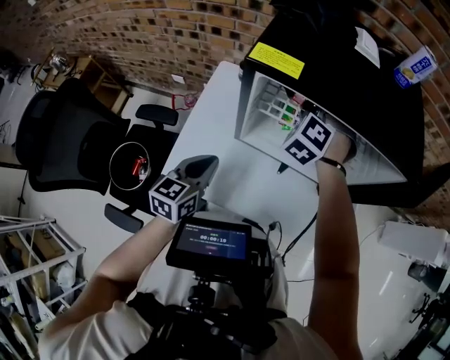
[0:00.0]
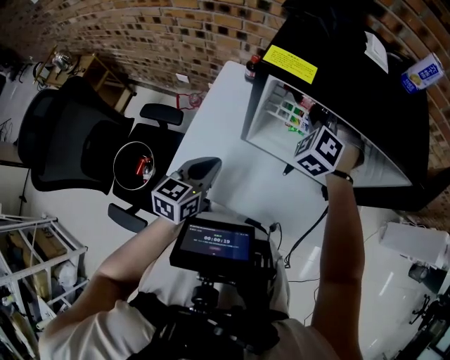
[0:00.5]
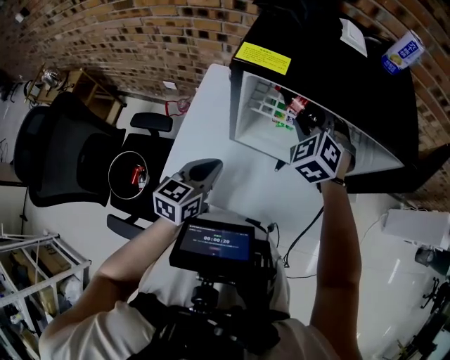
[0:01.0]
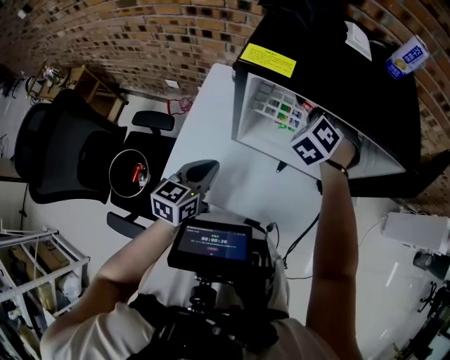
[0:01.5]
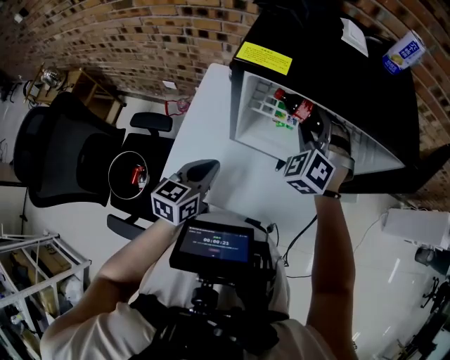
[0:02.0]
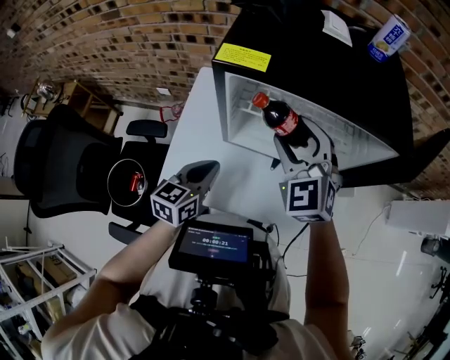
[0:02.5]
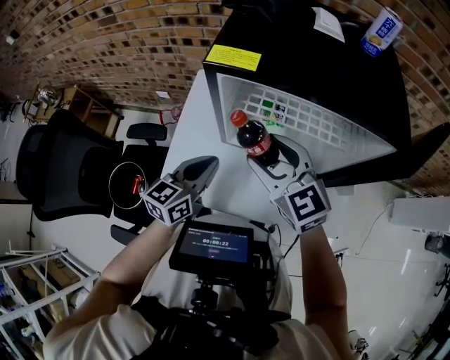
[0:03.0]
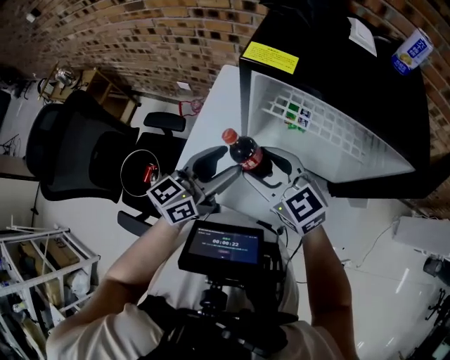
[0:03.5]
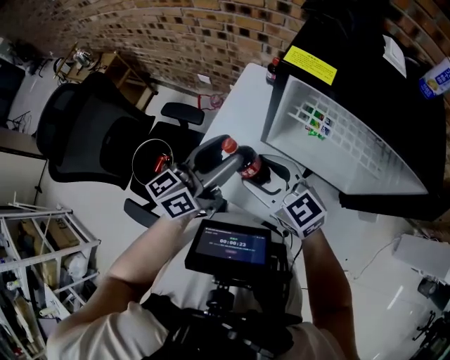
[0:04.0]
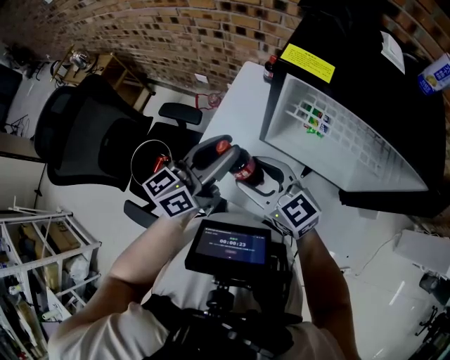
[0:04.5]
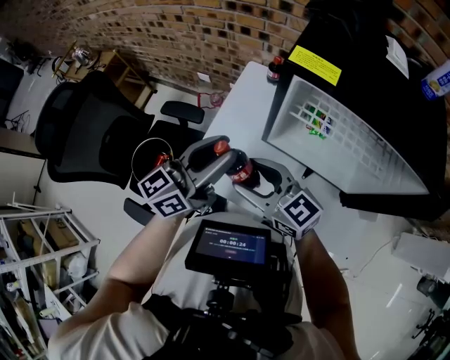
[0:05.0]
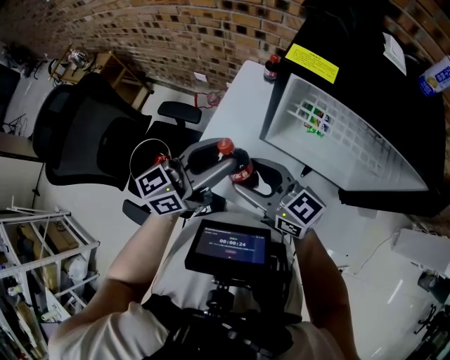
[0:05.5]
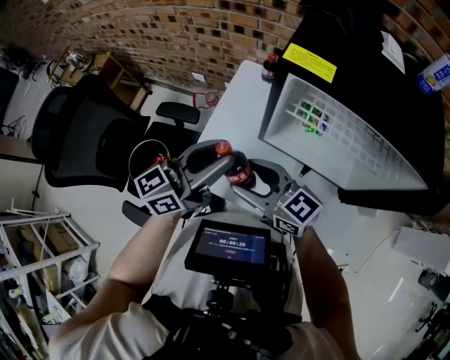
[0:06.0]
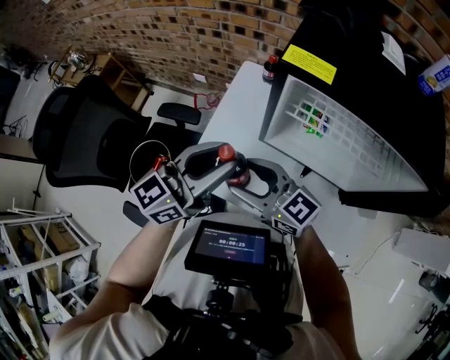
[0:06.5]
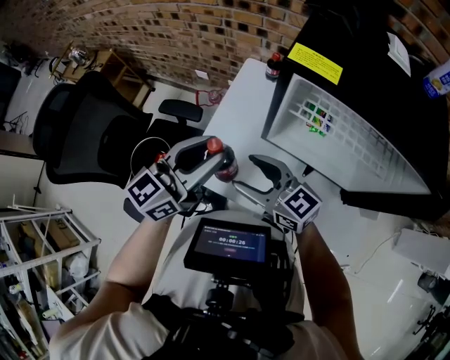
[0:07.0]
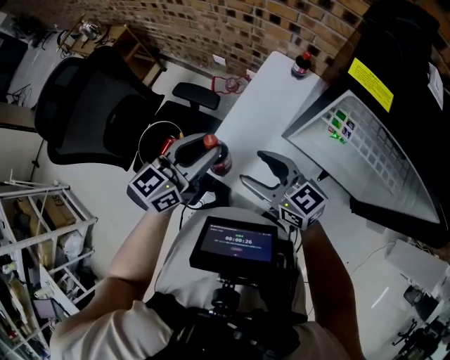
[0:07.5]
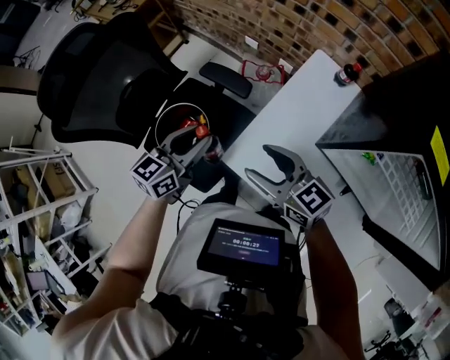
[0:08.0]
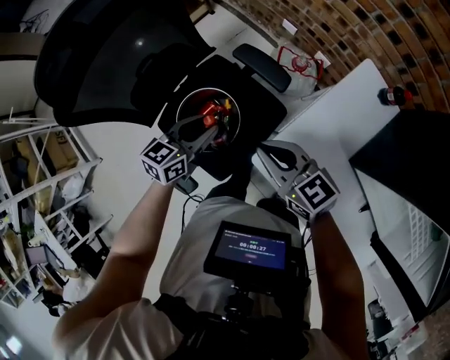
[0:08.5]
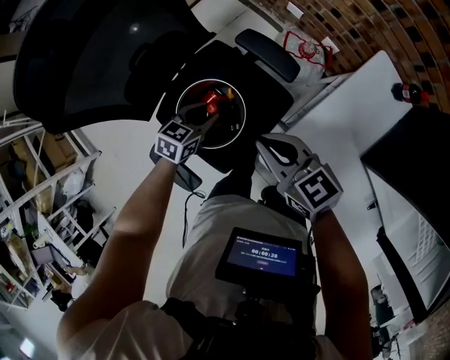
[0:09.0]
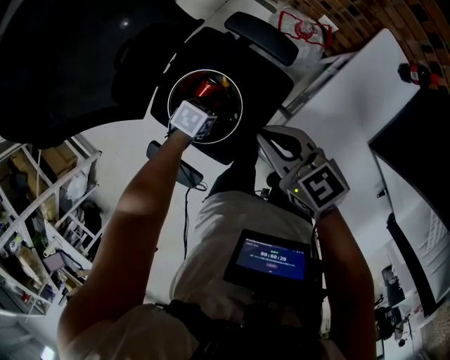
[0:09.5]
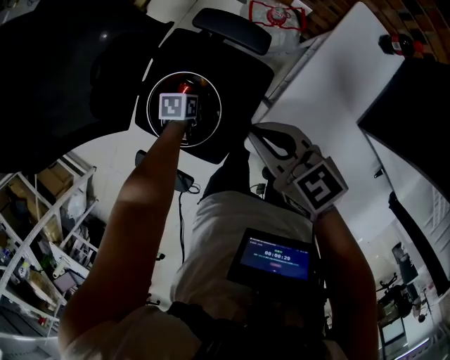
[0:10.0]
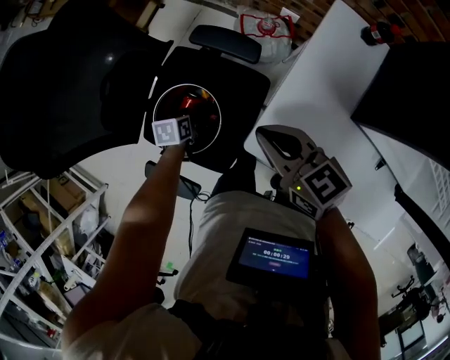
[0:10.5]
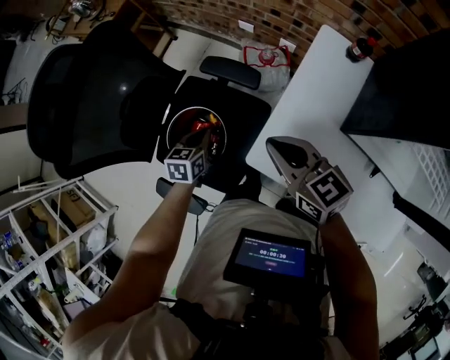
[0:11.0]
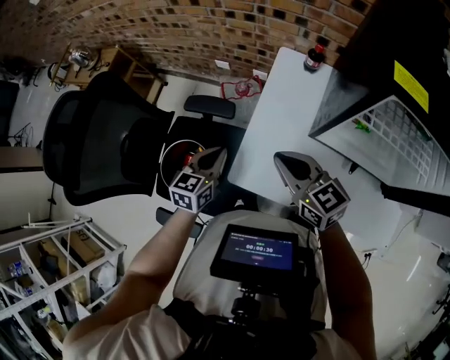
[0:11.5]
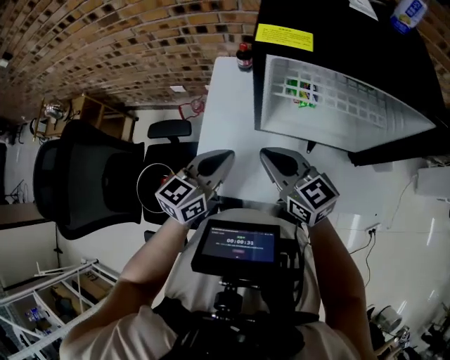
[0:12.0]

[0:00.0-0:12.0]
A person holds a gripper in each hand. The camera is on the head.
0:00.0 to 0:02.0: The right gripper moves forward and backward over some 5 cm, changing direction 2 times.
0:02.0 to 0:04.0: The right gripper shifts by some 25 cm, and swivels some 80 degrees, while the left gripper travels upward by some 10 cm, swivels about 30 degrees, and opens its fingers.
0:04.0 to 0:06.0: The left gripper closes up.
0:06.0 to 0:08.0: The left gripper travels to the left and downward by roughly 30 cm, and swivels some 30 degrees, while the right gripper moves to the left, downward and forward, roughly 15 cm.
0:08.0 to 0:10.0: The left gripper moves downward, about 35 cm, and tips its fingers downward by about 50 degrees, while the right gripper shifts by some 15 cm, and closes.
0:10.0 to 0:12.0: The left gripper is displaced upward by approximately 40 cm, tilts its fingers about 50 degrees upward, and closes. Meanwhile the right gripper shifts by some 35 cm, and rotates some 40 degrees.

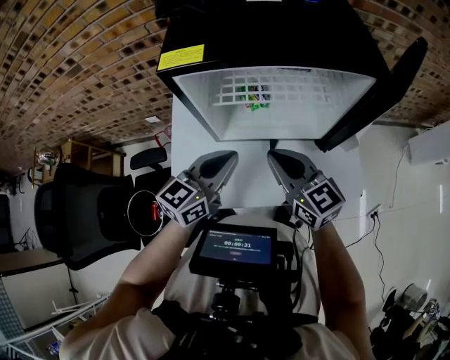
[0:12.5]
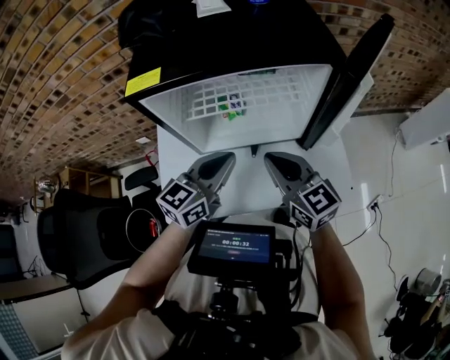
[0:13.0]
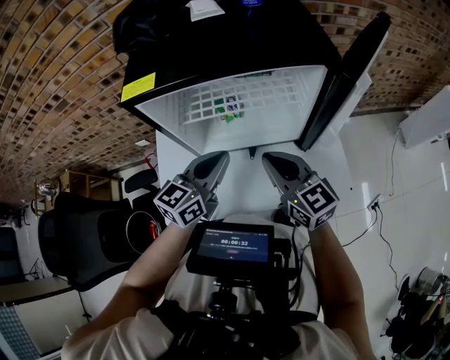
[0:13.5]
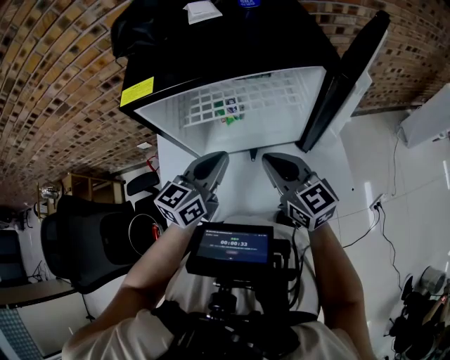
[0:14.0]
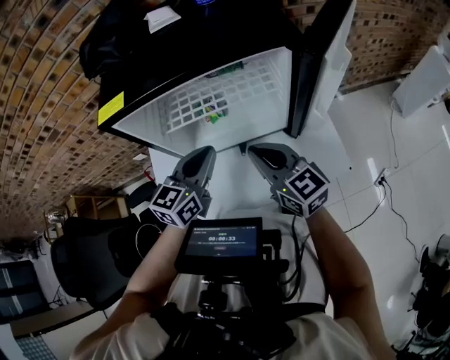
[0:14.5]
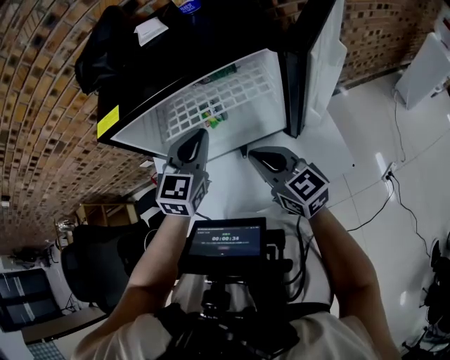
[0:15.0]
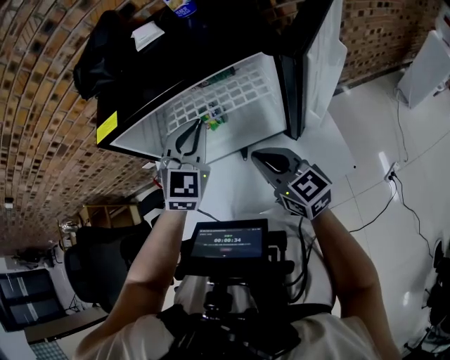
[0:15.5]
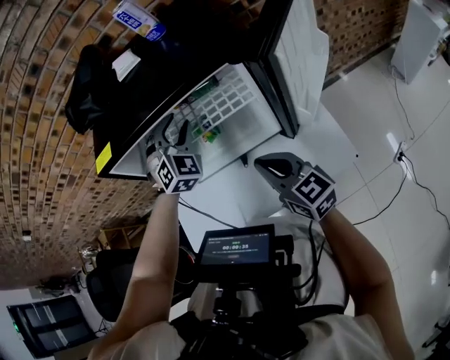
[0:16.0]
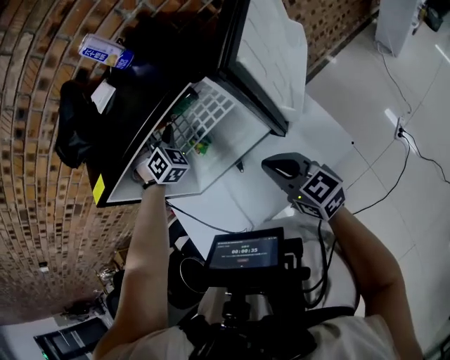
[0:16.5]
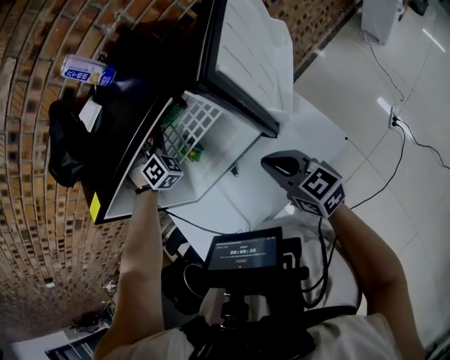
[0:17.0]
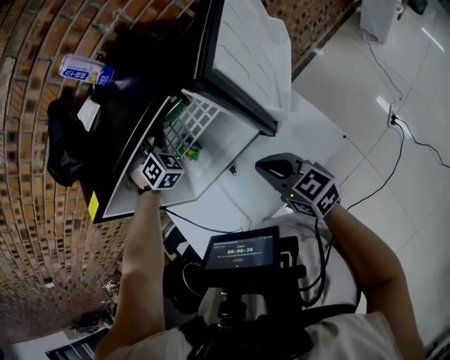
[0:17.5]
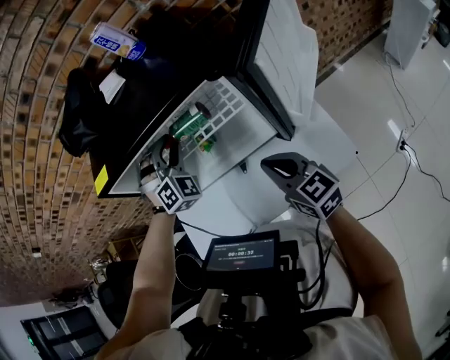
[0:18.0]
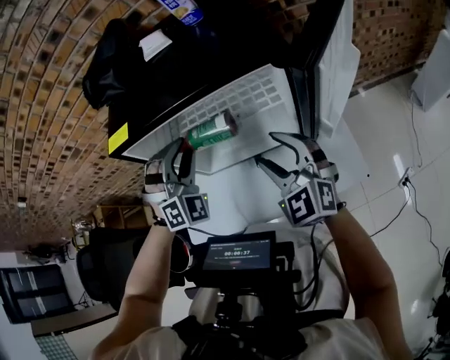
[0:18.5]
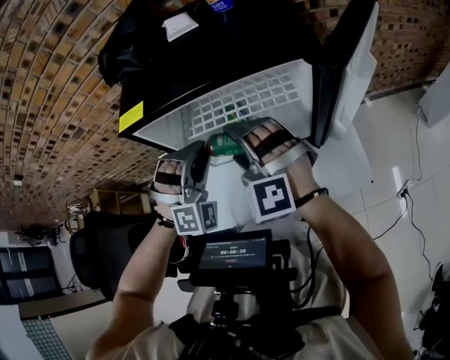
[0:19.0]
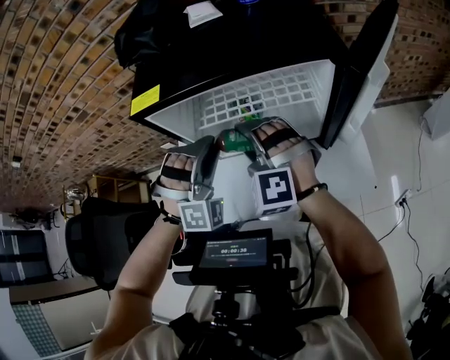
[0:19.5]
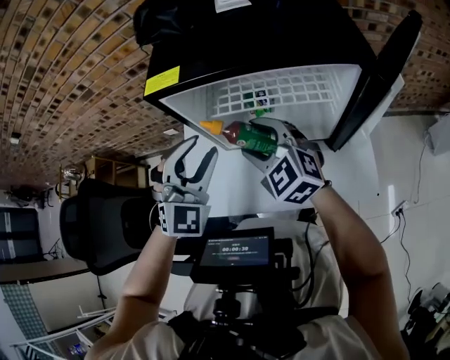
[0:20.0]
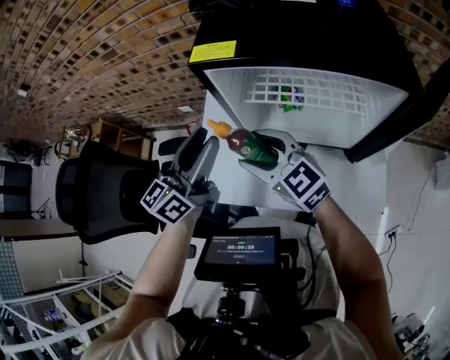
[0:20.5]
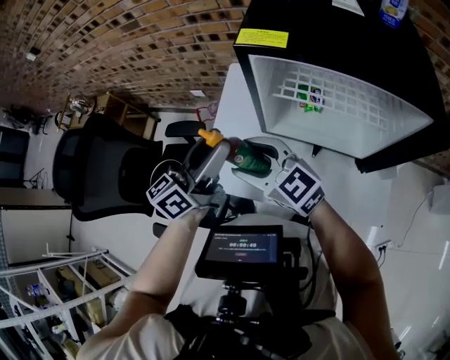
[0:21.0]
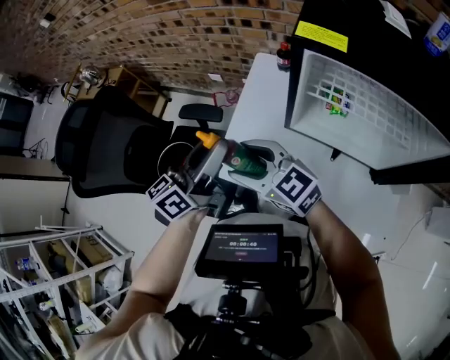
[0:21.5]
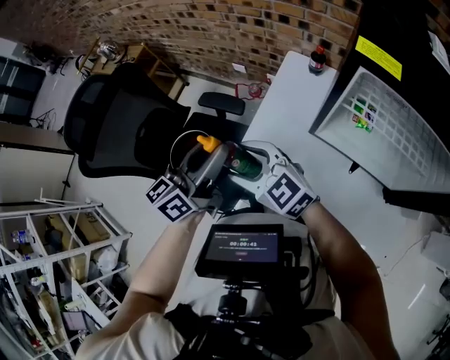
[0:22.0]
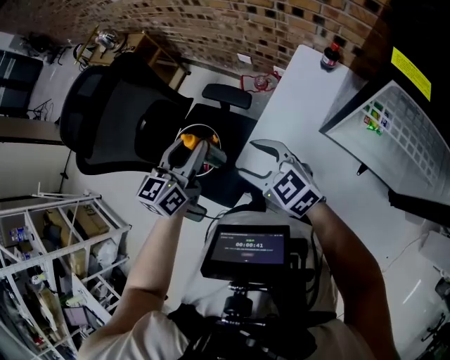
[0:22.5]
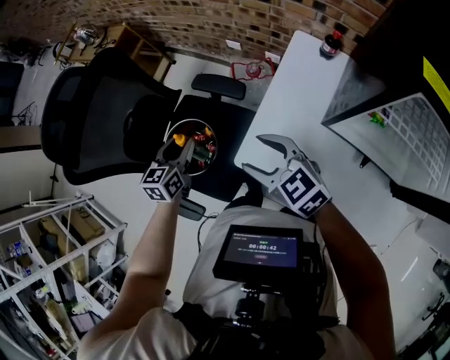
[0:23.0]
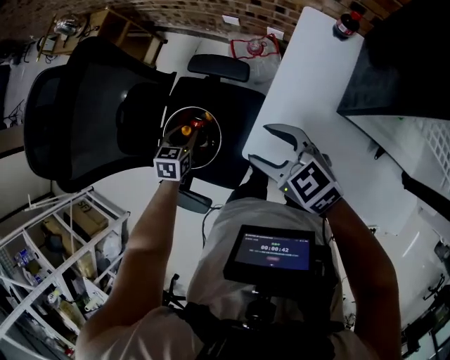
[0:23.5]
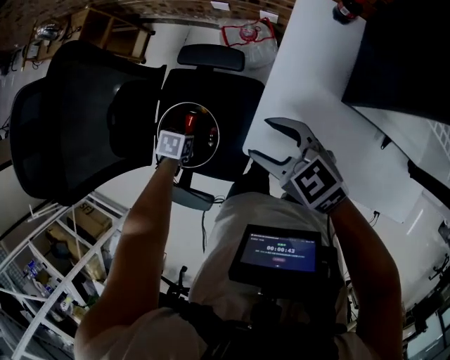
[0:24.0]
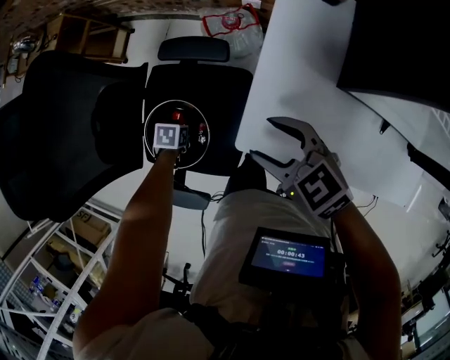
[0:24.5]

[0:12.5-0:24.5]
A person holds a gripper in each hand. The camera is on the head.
0:12.5 to 0:14.5: The two grippers go about 5 cm to the right.
0:14.5 to 0:16.5: The right gripper travels to the right by some 10 cm, while the left gripper heads forward, covering about 20 cm, rolls clockwise, seen from behind, by roughly 80 degrees, and opens up.
0:16.5 to 0:18.5: The right gripper moves upward and forward, about 10 cm, rotates around the line of its fingers by roughly 50 degrees, counterclockwise from behind, and opens up. The left gripper shifts roughly 15 cm backward and to the left.
0:18.5 to 0:20.5: Both grippers move to the left, some 20 cm. The left gripper twists roughly 100 degrees counterclockwise, seen from behind. Meanwhile the right gripper turns by about 40 degrees.
0:20.5 to 0:22.5: The left gripper moves some 35 cm, and changes its angle by roughly 30 degrees. Meanwhile the right gripper changes place by approximately 25 cm, and swivels roughly 30 degrees.
0:22.5 to 0:24.5: The right gripper travels downward by approximately 10 cm, and rotates roughly 20 degrees. Meanwhile the left gripper heads downward, covering roughly 40 cm, and tips its fingers downward by some 60 degrees.

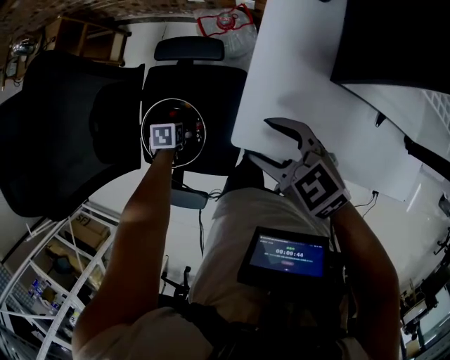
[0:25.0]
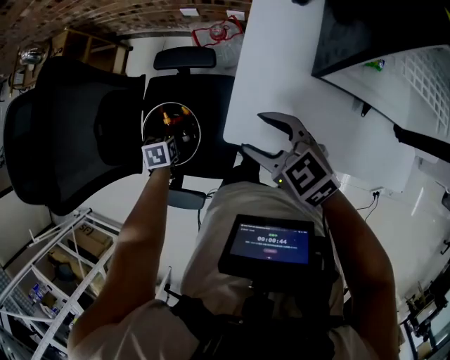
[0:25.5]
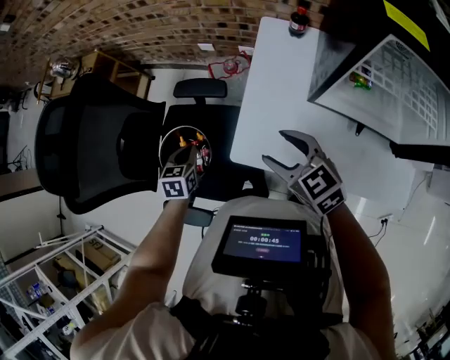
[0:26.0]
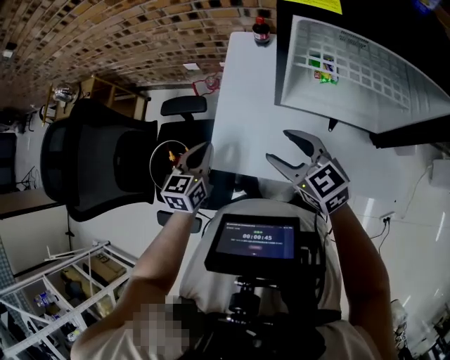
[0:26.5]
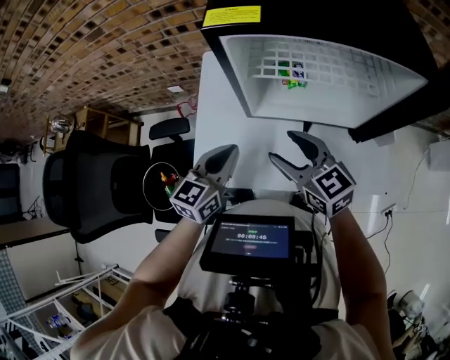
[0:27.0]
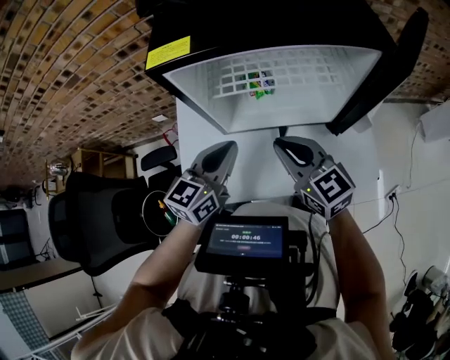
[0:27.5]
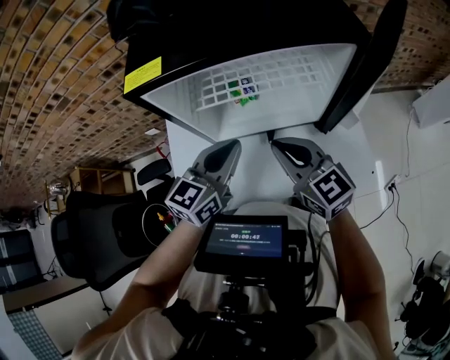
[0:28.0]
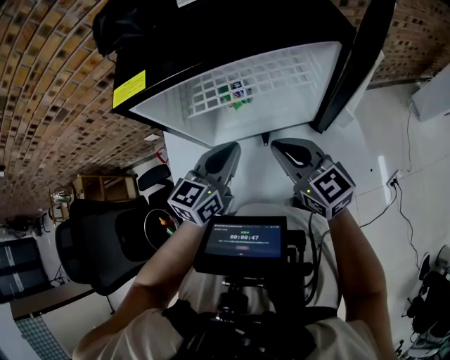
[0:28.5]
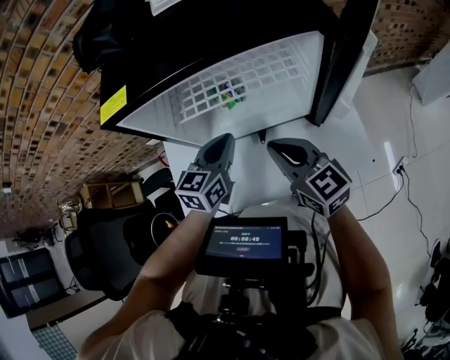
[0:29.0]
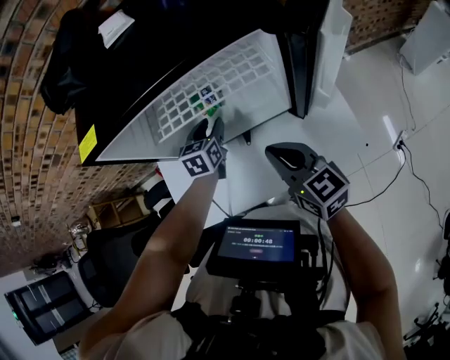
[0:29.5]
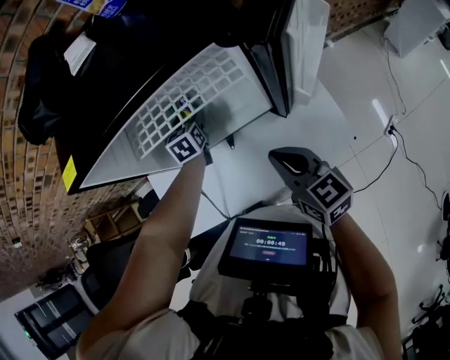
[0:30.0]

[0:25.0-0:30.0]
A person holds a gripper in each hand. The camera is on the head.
0:25.0 to 0:27.5: The left gripper changes place by about 70 cm, angles its fingers upward, by roughly 60 degrees, and closes its fingers. Meanwhile the right gripper changes place by some 40 cm, turns by some 50 degrees, and closes its fingers.
0:27.5 to 0:30.0: The right gripper goes roughly 15 cm to the right and downward, and changes its angle by approximately 20 degrees. Meanwhile the left gripper goes approximately 30 cm forward and downward, turns by roughly 40 degrees, and opens up.
